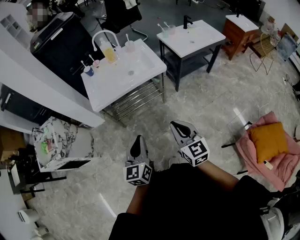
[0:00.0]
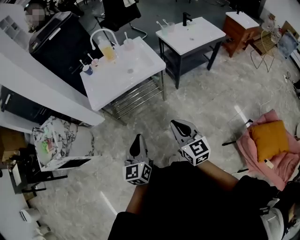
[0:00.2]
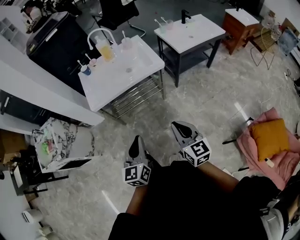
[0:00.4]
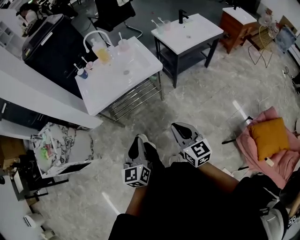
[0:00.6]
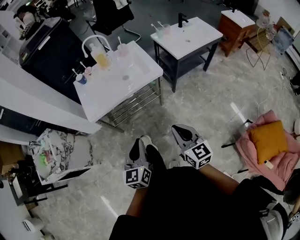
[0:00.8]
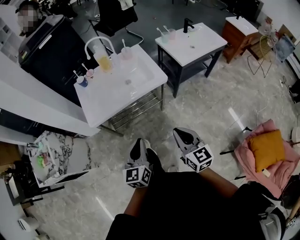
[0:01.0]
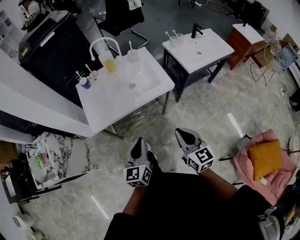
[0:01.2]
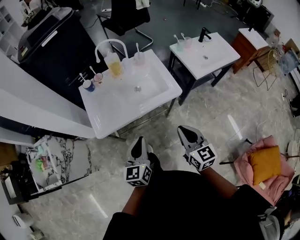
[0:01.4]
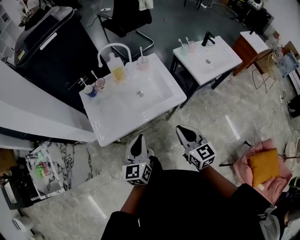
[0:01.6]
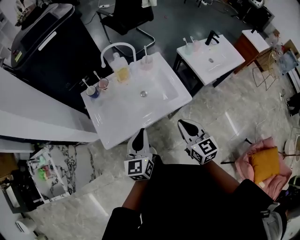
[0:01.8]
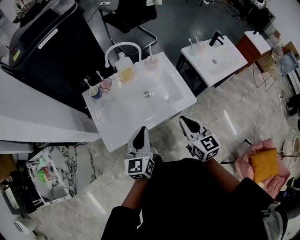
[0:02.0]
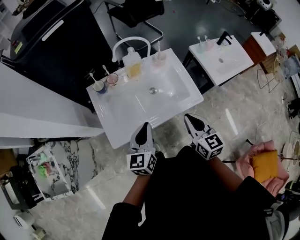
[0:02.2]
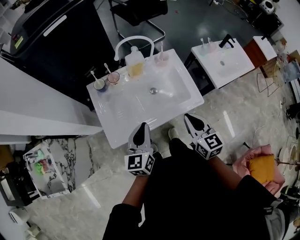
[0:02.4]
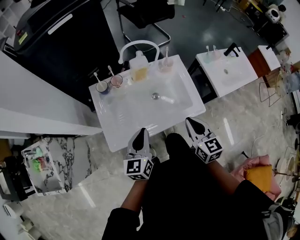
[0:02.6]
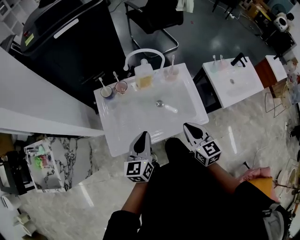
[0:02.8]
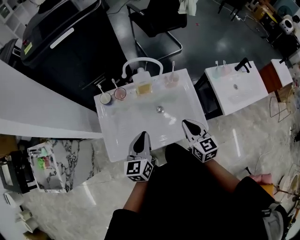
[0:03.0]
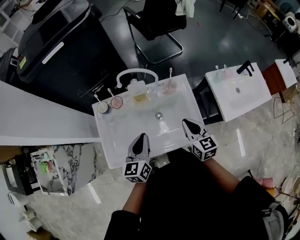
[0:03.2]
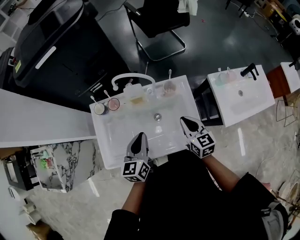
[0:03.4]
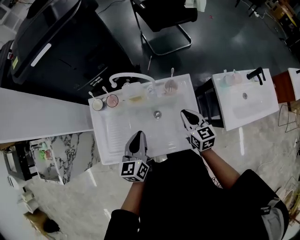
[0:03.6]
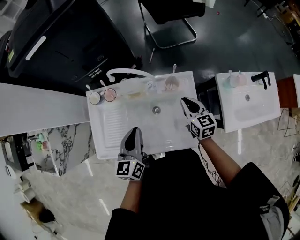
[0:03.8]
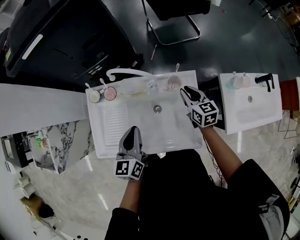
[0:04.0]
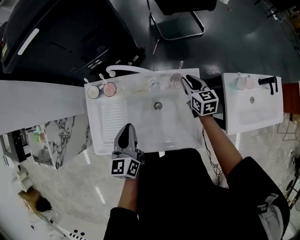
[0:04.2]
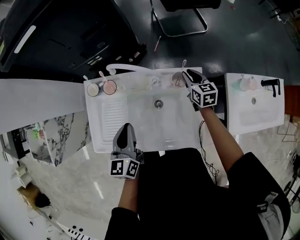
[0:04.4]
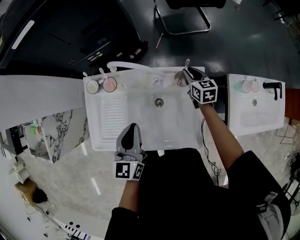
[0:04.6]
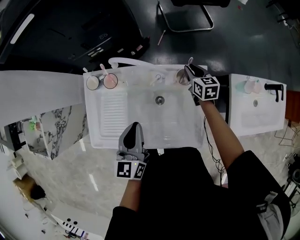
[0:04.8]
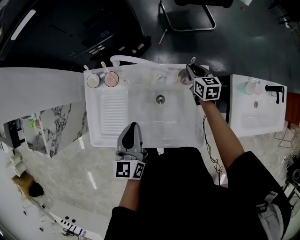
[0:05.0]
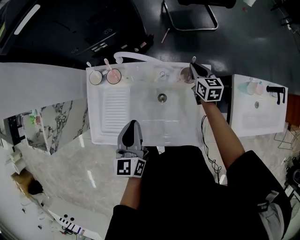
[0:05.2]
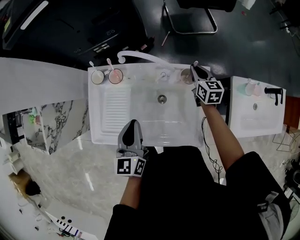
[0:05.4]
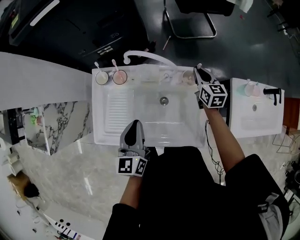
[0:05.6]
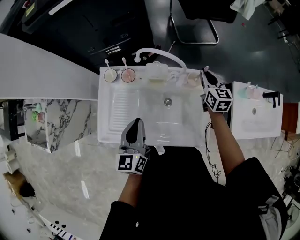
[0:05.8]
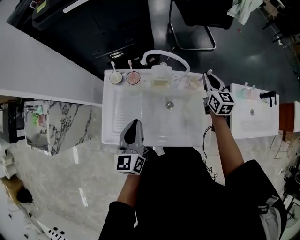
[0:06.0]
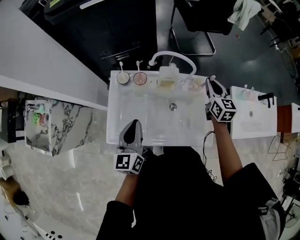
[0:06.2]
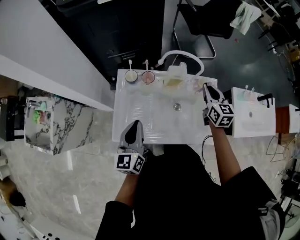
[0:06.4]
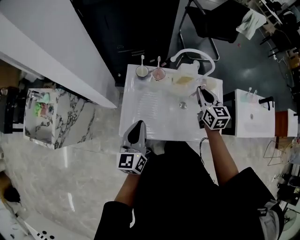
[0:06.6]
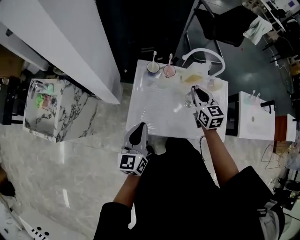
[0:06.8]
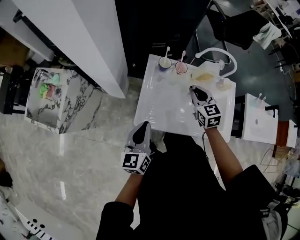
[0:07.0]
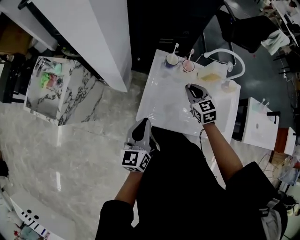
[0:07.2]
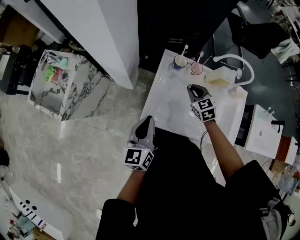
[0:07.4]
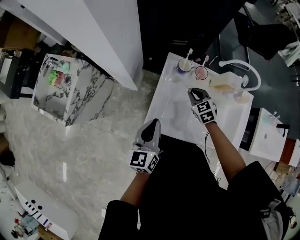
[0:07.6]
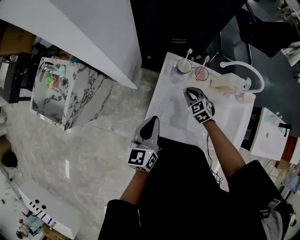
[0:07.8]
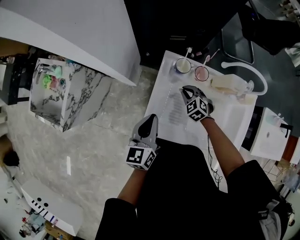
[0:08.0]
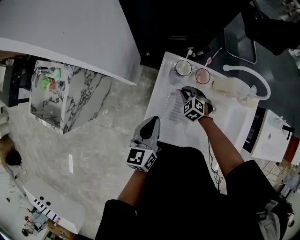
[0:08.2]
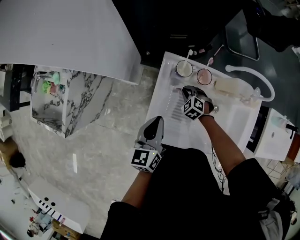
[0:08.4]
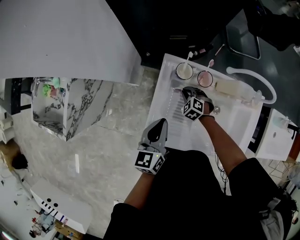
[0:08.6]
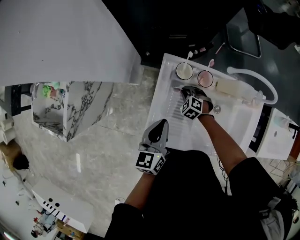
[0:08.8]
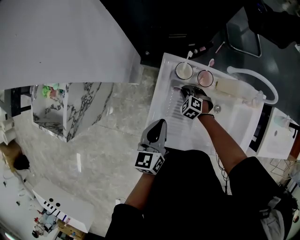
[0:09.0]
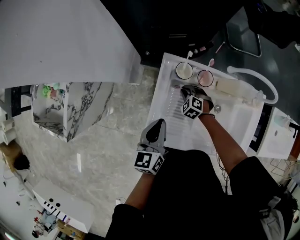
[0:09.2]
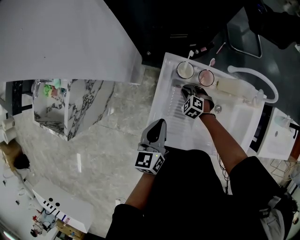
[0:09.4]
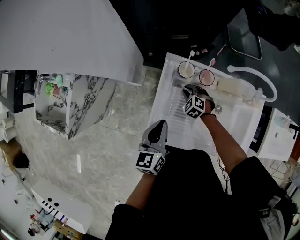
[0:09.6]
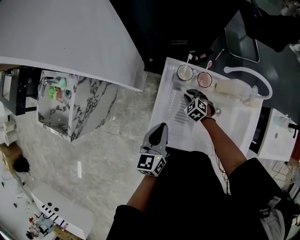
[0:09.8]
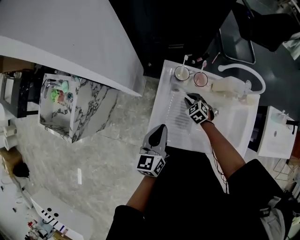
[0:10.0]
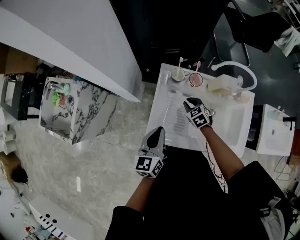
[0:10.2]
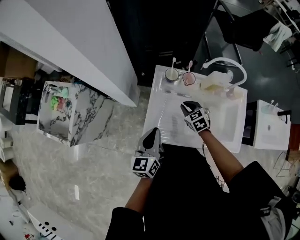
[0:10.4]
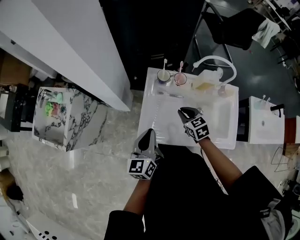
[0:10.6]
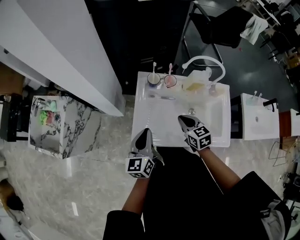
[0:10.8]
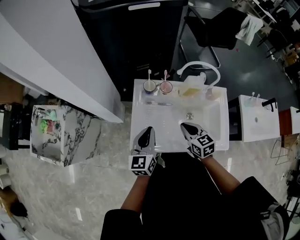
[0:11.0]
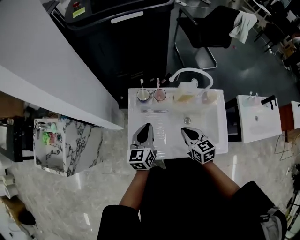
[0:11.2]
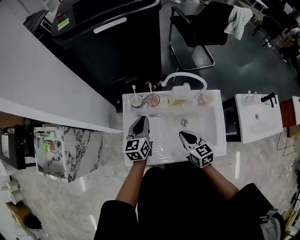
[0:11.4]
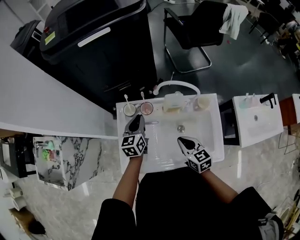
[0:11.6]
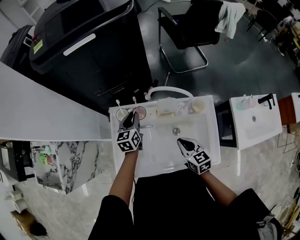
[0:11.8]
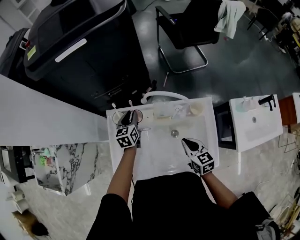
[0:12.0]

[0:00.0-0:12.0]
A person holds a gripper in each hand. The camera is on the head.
0:00.0 to 0:01.6: The grippers both shift forward by approximately 35 cm.
0:01.6 to 0:03.0: The two grippers go approximately 25 cm forward.
0:03.0 to 0:04.4: The right gripper is displaced forward and downward by about 35 cm. The left gripper is displaced forward by about 15 cm.
0:04.4 to 0:06.0: The left gripper travels to the left and backward by about 10 cm. The right gripper is displaced upward by roughly 15 cm.
0:06.0 to 0:07.6: The right gripper shifts approximately 40 cm to the left, and rotates roughly 50 degrees. Meanwhile the left gripper is displaced to the left by roughly 25 cm.
0:07.6 to 0:09.0: The left gripper moves forward, downward and to the right, about 15 cm. Meanwhile the right gripper shifts some 15 cm downward, and changes its angle by about 30 degrees.
0:09.0 to 0:10.4: The right gripper heads upward and backward, covering roughly 20 cm, and changes its angle by approximately 40 degrees, while the left gripper travels backward and upward by about 15 cm.
0:10.4 to 0:12.0: The left gripper heads forward and to the right, covering roughly 35 cm; the right gripper travels to the right by about 25 cm, and swivels approximately 30 degrees.

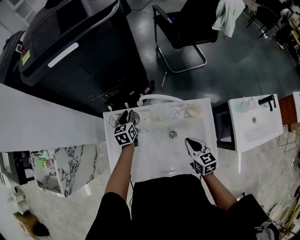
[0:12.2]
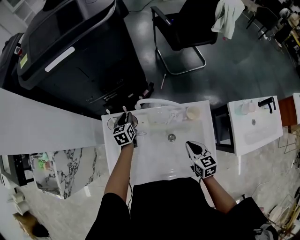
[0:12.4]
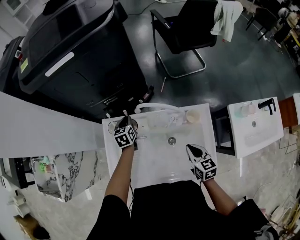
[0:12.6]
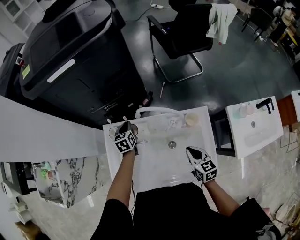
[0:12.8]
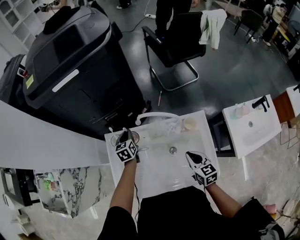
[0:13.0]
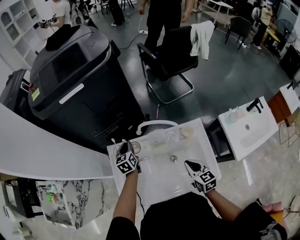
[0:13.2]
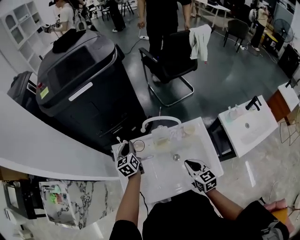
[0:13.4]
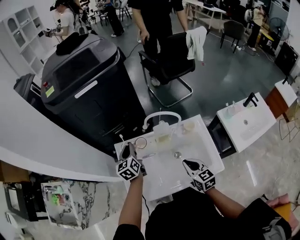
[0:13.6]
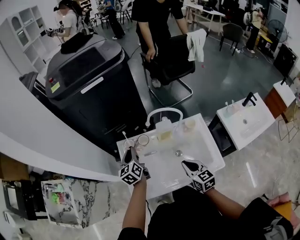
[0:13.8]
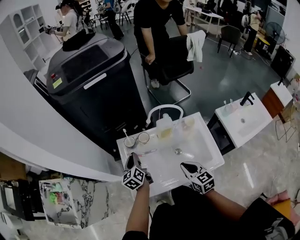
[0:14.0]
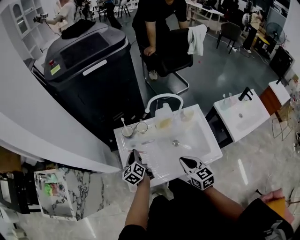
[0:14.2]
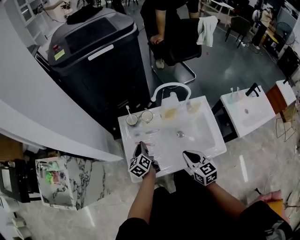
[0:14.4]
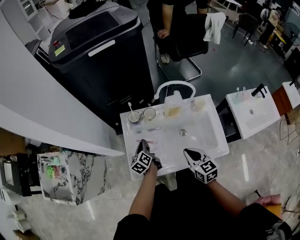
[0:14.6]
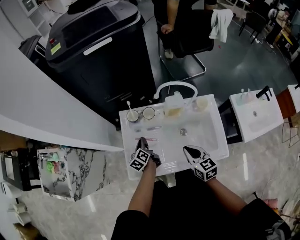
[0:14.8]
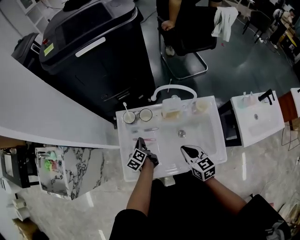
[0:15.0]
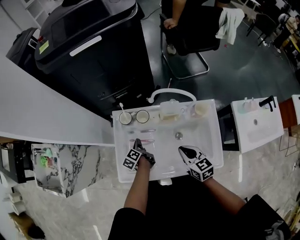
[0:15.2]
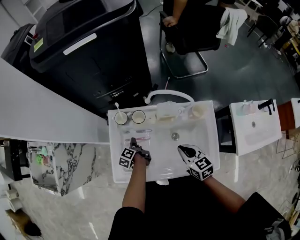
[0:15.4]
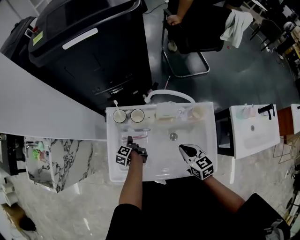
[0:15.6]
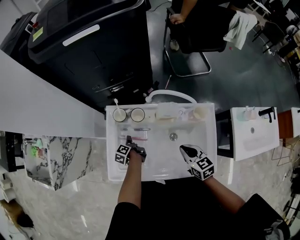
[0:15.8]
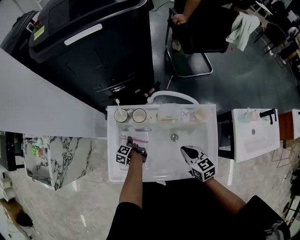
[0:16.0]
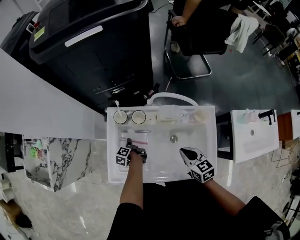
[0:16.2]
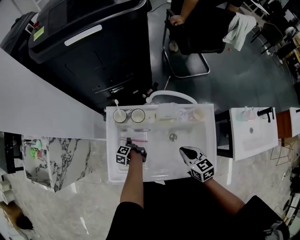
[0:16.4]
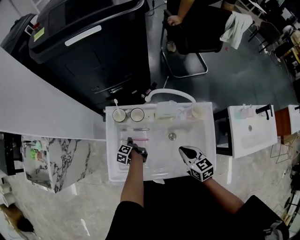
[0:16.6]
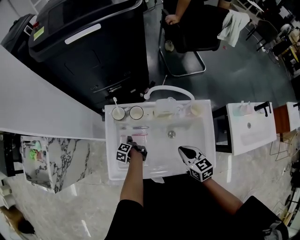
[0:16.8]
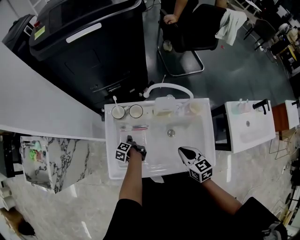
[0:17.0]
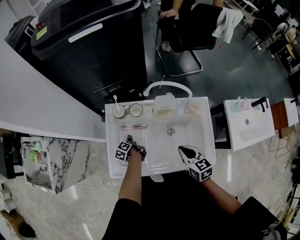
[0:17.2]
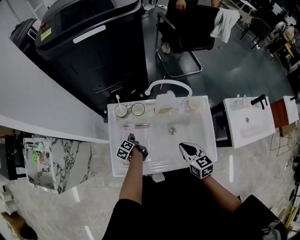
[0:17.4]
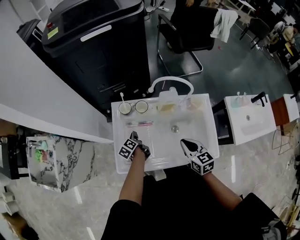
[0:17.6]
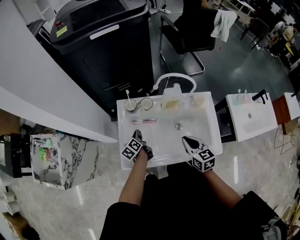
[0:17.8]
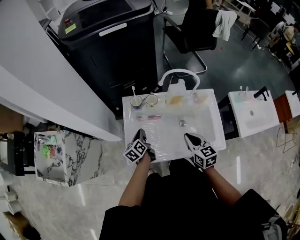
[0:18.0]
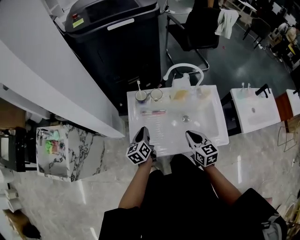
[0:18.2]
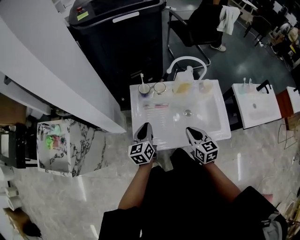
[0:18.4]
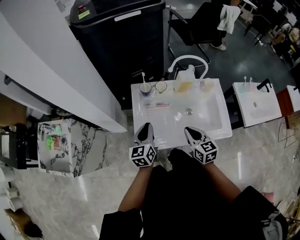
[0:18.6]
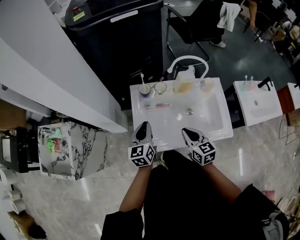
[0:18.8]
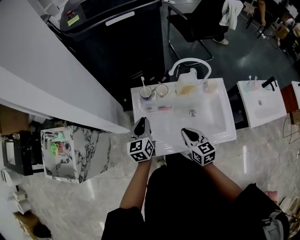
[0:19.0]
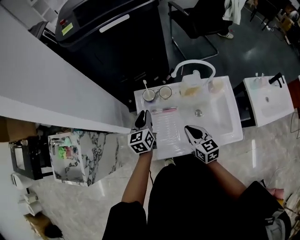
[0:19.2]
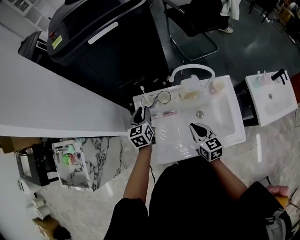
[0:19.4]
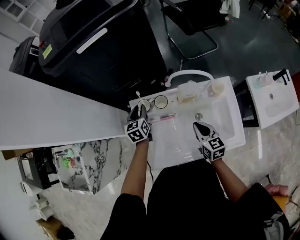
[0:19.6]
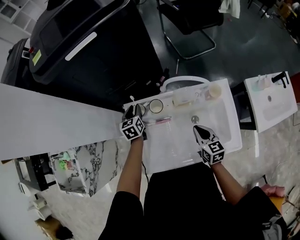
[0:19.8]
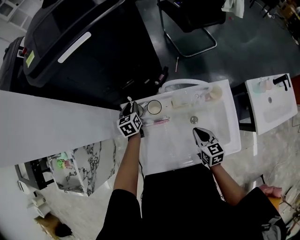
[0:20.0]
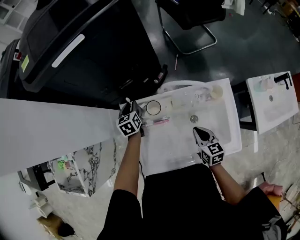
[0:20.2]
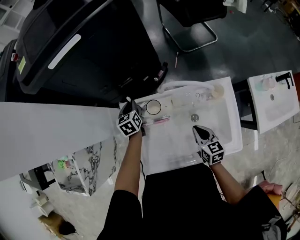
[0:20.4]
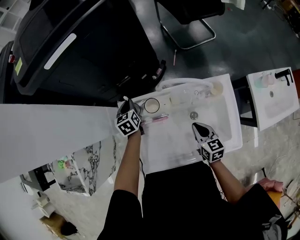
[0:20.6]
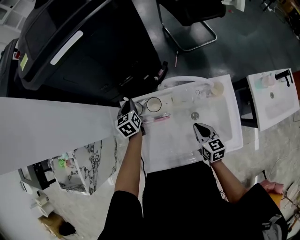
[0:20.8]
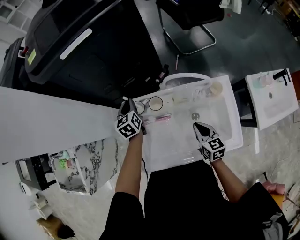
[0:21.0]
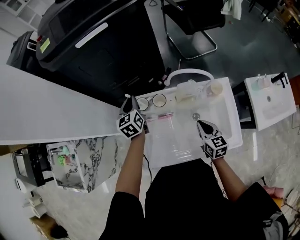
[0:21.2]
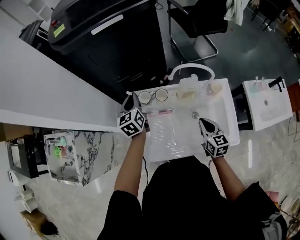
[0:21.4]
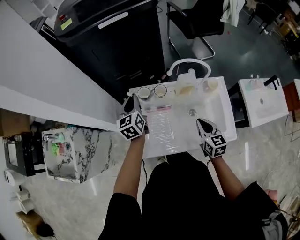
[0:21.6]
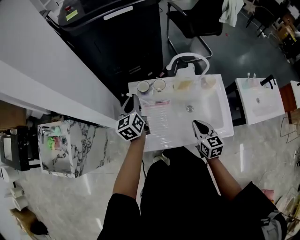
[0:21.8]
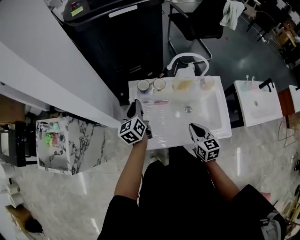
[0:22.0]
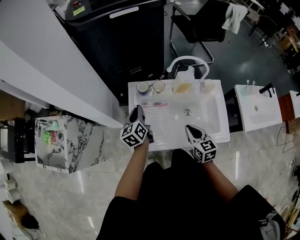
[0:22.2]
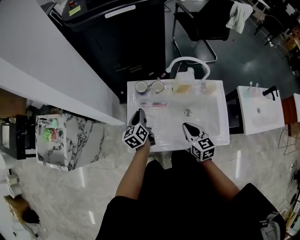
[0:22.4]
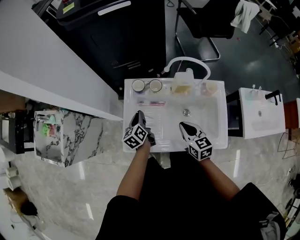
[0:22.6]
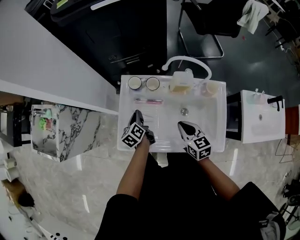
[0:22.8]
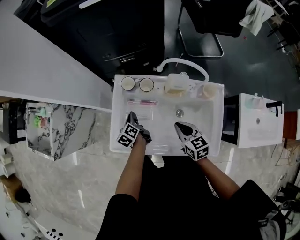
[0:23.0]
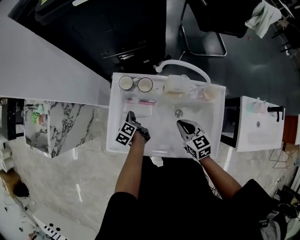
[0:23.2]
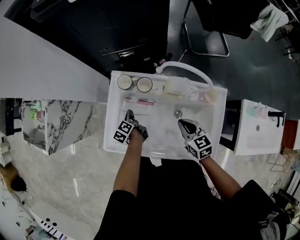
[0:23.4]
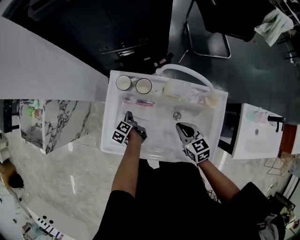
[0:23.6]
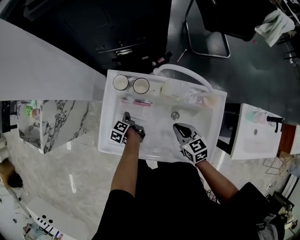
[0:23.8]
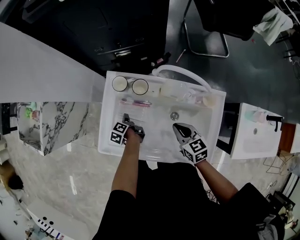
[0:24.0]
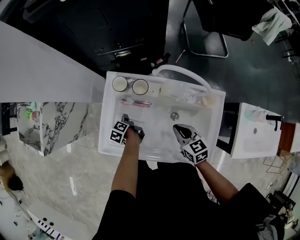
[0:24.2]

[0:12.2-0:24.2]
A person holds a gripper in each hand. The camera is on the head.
0:12.2 to 0:13.8: The right gripper shifts approximately 15 cm to the left, backward and upward, while the left gripper travels upward, backward and to the left by roughly 20 cm, and changes its angle by some 20 degrees.
0:13.8 to 0:15.2: The left gripper moves downward, roughly 25 cm, and changes its angle by roughly 40 degrees. Meanwhile the right gripper shifts roughly 10 cm downward and forward.
0:15.2 to 0:16.6: The left gripper goes about 10 cm downward.
0:16.6 to 0:18.2: The left gripper shifts roughly 25 cm upward and backward, and twists about 50 degrees clockwise, seen from behind, while the right gripper travels to the left, backward and upward by roughly 15 cm.
0:18.2 to 0:19.8: The right gripper travels forward, to the right and downward by some 15 cm; the left gripper heads forward, covering roughly 25 cm, and changes its angle by roughly 30 degrees.
0:19.8 to 0:21.2: The left gripper travels upward by approximately 10 cm.
0:21.2 to 0:22.6: The right gripper travels to the left and backward by roughly 10 cm. The left gripper travels backward and downward by some 20 cm, and rotates roughly 30 degrees.
0:22.6 to 0:24.2: The right gripper travels to the right and downward by approximately 15 cm, while the left gripper is displaced downward by some 20 cm, and rotates approximately 40 degrees.
